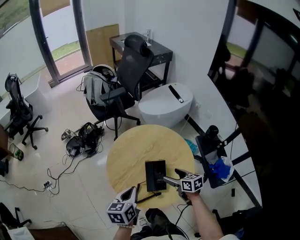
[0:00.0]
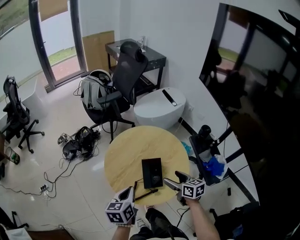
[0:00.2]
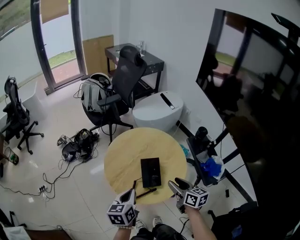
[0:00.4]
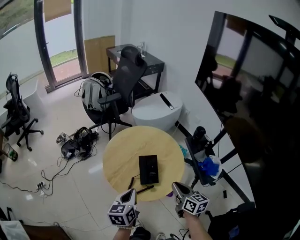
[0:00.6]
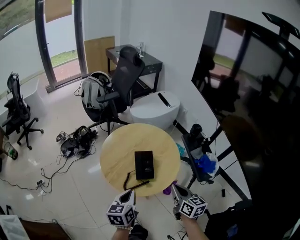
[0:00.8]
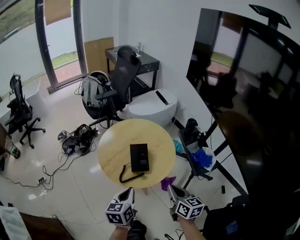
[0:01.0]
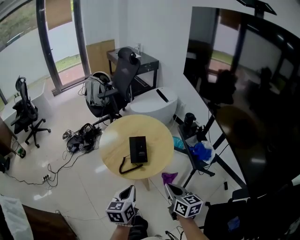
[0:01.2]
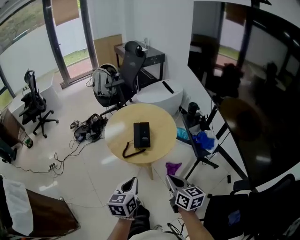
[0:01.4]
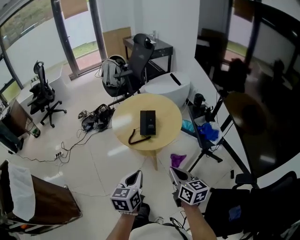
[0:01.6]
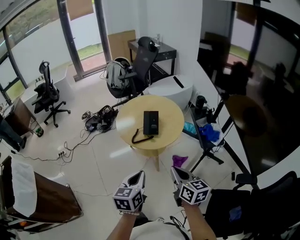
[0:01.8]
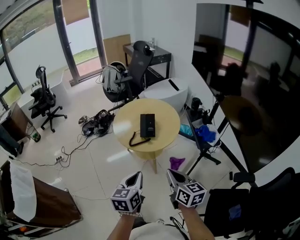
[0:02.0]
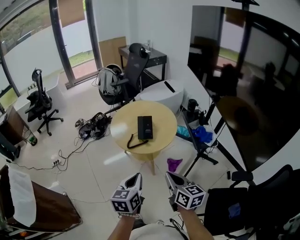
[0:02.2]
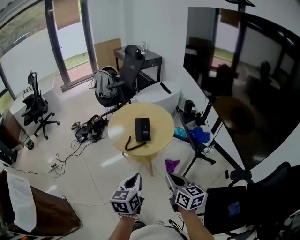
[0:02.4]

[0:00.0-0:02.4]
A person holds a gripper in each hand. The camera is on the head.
0:00.0 to 0:01.2: The right gripper moves backward and upward, roughly 35 cm, changes its angle by approximately 20 degrees, and closes its fingers; the left gripper travels backward by approximately 20 cm.
0:01.2 to 0:02.4: The left gripper travels backward by some 15 cm. Meanwhile the right gripper heads backward and upward, covering about 15 cm.

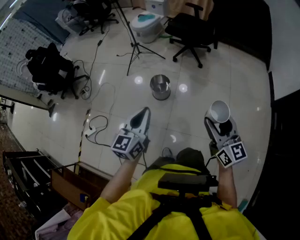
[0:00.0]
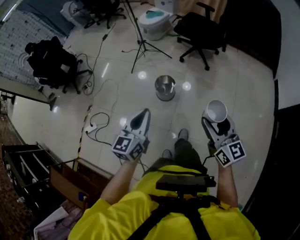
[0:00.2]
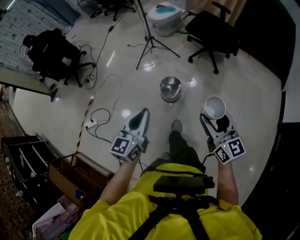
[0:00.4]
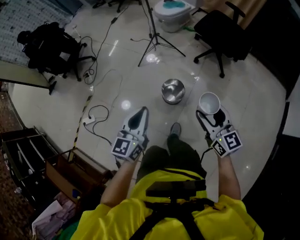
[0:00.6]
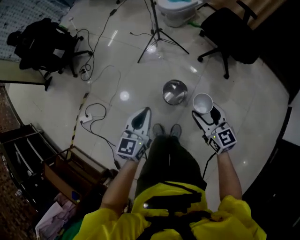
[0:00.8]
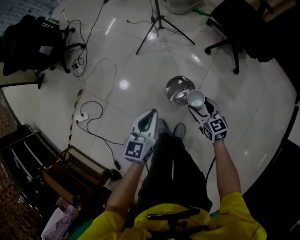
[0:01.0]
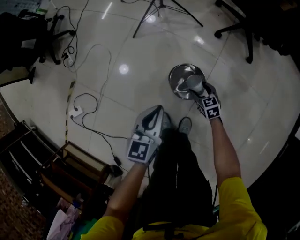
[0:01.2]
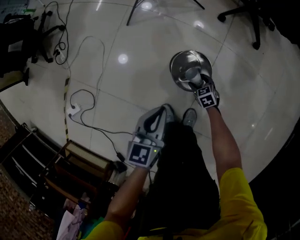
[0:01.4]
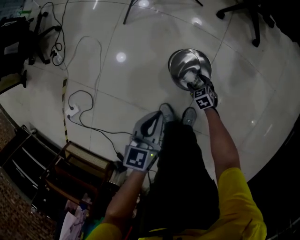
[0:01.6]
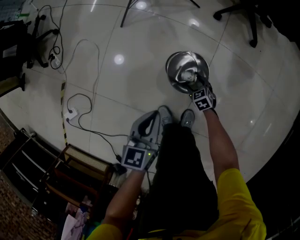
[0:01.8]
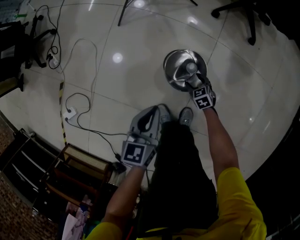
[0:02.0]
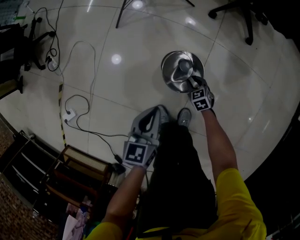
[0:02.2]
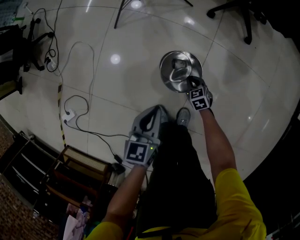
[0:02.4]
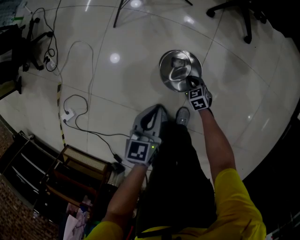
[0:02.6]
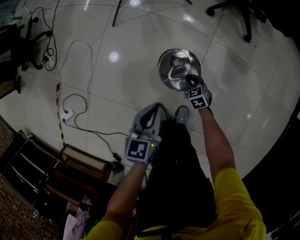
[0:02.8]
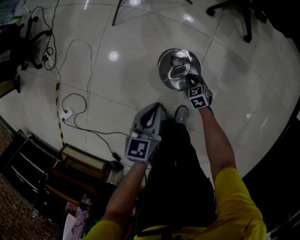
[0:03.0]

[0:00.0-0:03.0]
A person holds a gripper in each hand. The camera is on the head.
0:00.0 to 0:01.6: The right gripper is displaced downward and forward by roughly 1 m, and tilts its fingers some 60 degrees downward. The left gripper goes about 70 cm downward and forward, and changes its angle by roughly 20 degrees.
0:01.6 to 0:03.0: The right gripper closes. The left gripper moves some 5 cm.

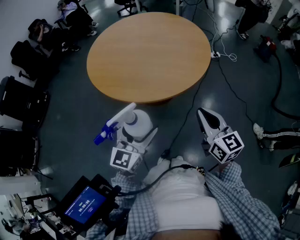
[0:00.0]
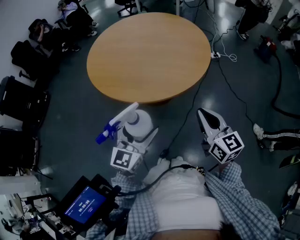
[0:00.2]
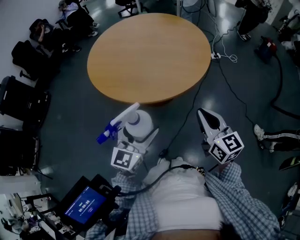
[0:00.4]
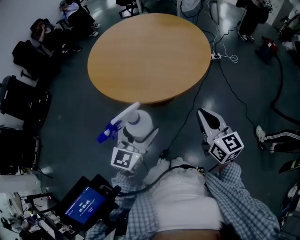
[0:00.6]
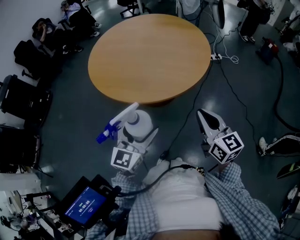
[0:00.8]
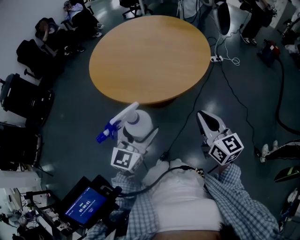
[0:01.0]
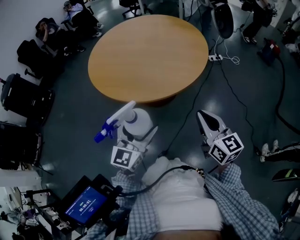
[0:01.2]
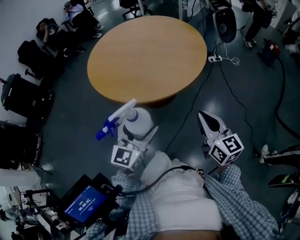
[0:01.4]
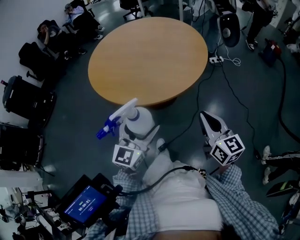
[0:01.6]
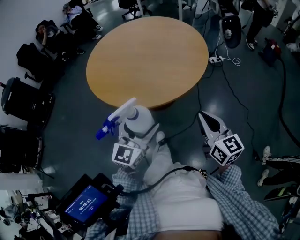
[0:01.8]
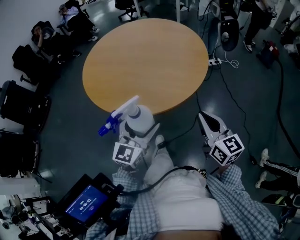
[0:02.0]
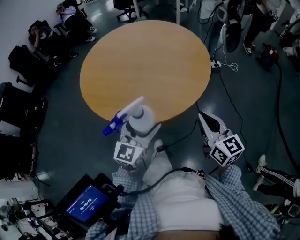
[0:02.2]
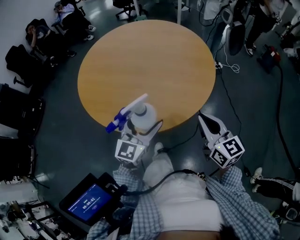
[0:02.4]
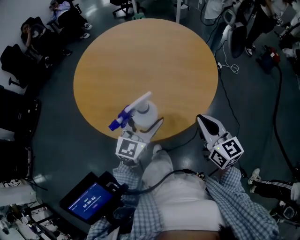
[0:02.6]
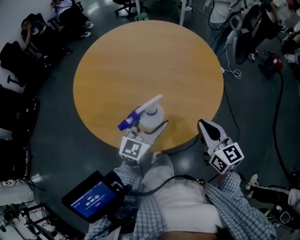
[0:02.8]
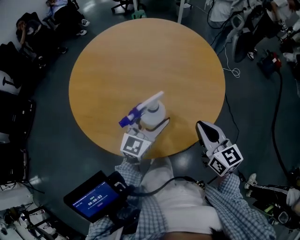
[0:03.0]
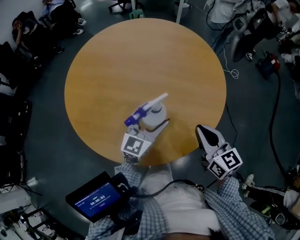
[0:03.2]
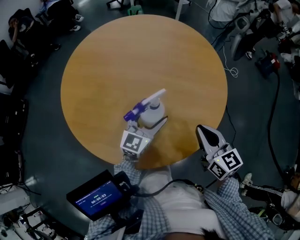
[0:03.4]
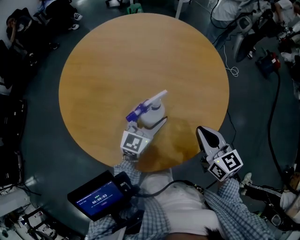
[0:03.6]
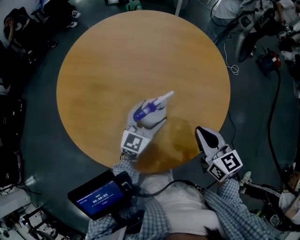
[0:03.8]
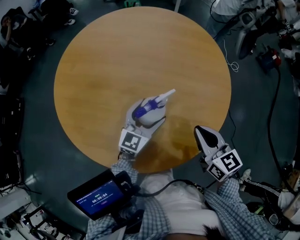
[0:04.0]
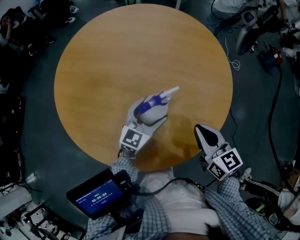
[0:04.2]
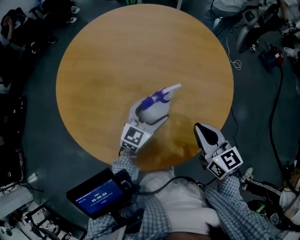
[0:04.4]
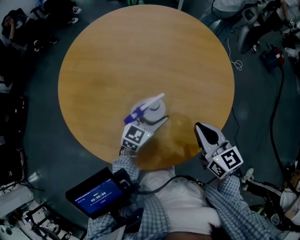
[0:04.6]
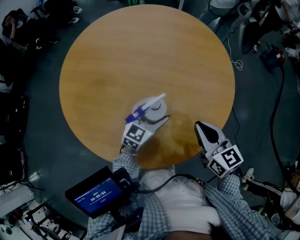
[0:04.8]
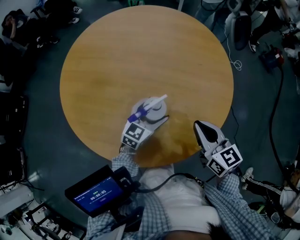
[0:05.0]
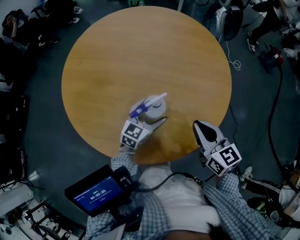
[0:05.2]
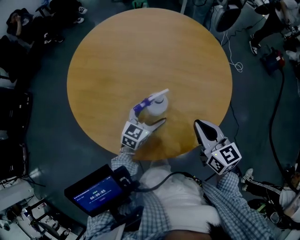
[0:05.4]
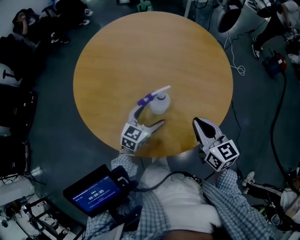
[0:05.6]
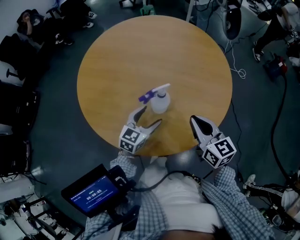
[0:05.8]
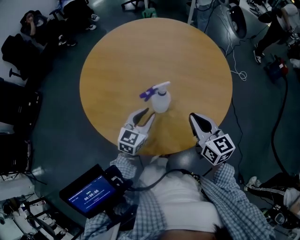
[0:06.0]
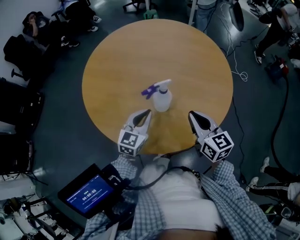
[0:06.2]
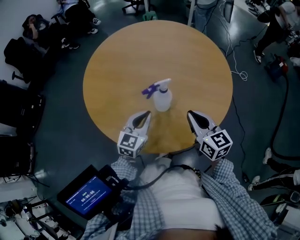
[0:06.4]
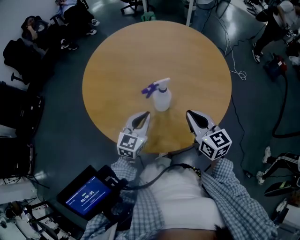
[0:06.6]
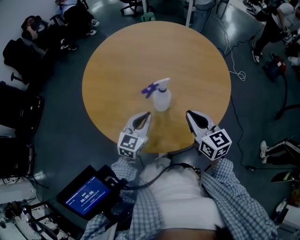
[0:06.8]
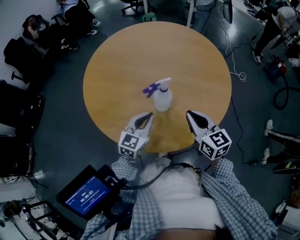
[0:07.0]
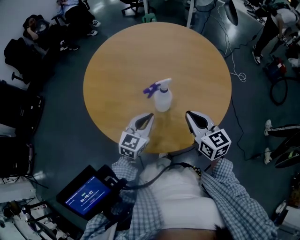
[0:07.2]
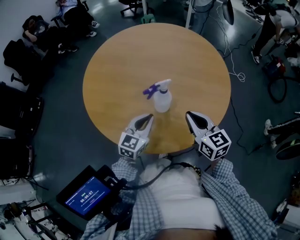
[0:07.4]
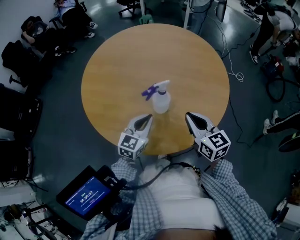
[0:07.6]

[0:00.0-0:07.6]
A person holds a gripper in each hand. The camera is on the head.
0:00.0 to 0:01.6: The right gripper goes some 10 cm backward and to the right. Meanwhile the left gripper shifts by some 10 cm.
0:01.6 to 0:03.0: The two grippers go approximately 30 cm forward.
0:03.0 to 0:04.6: The right gripper goes roughly 5 cm forward. The left gripper is displaced downward and forward by some 15 cm.
0:04.6 to 0:06.0: The right gripper ends up some 5 cm from where it was. The left gripper shifts some 15 cm backward, to the left and upward, and closes up.
0:06.0 to 0:07.6: The grippers make only small movements.

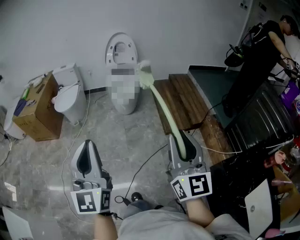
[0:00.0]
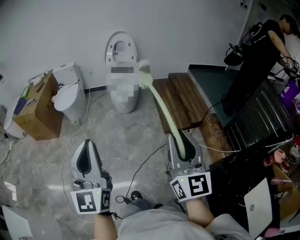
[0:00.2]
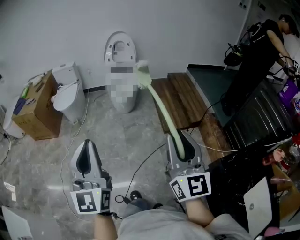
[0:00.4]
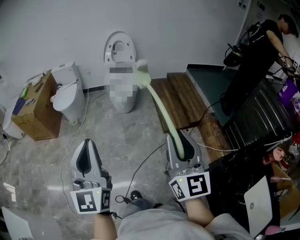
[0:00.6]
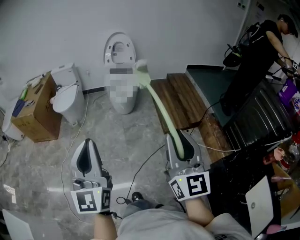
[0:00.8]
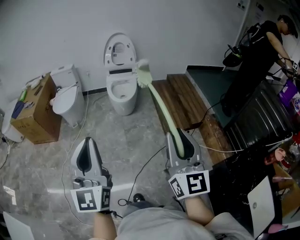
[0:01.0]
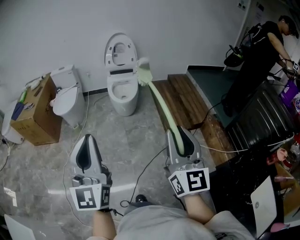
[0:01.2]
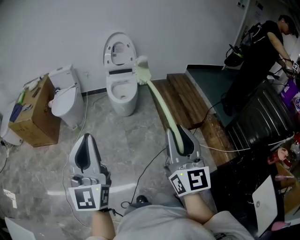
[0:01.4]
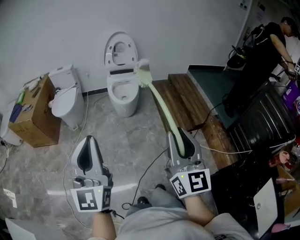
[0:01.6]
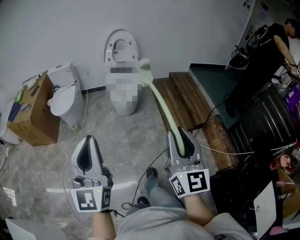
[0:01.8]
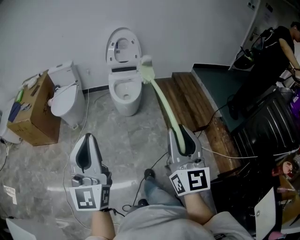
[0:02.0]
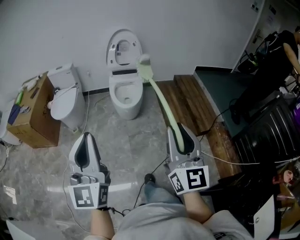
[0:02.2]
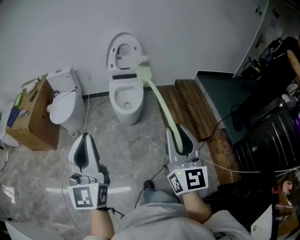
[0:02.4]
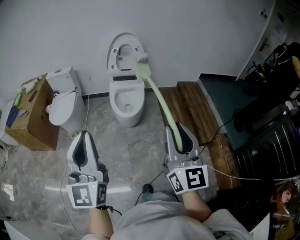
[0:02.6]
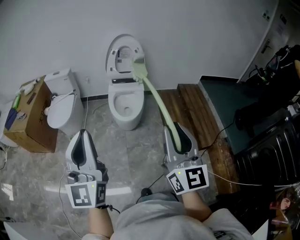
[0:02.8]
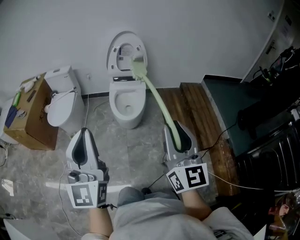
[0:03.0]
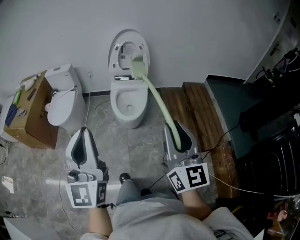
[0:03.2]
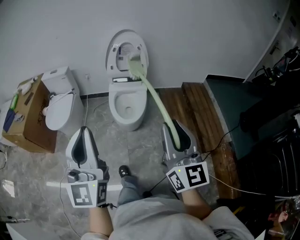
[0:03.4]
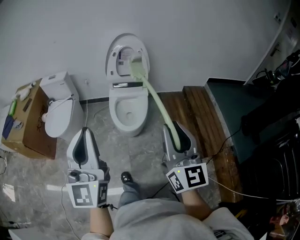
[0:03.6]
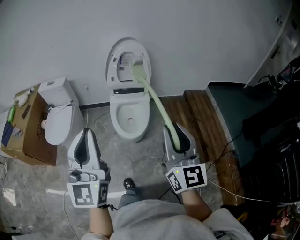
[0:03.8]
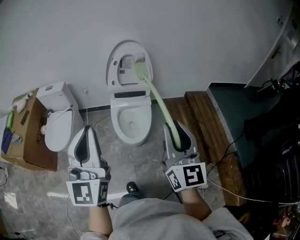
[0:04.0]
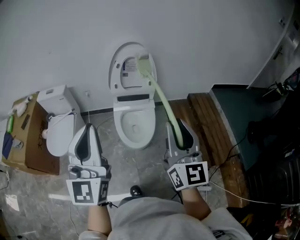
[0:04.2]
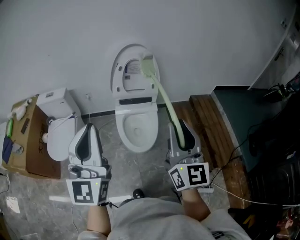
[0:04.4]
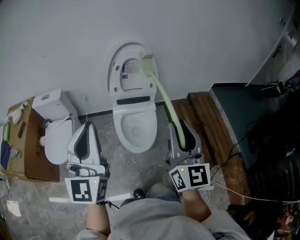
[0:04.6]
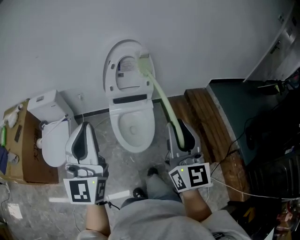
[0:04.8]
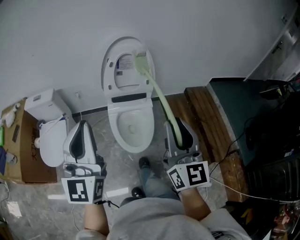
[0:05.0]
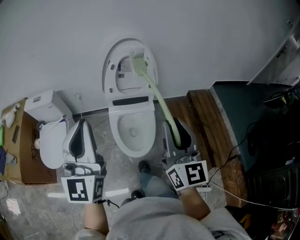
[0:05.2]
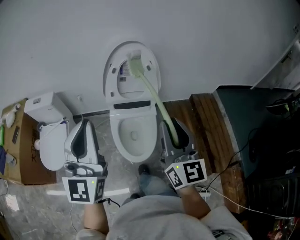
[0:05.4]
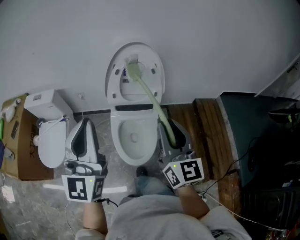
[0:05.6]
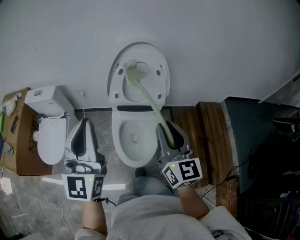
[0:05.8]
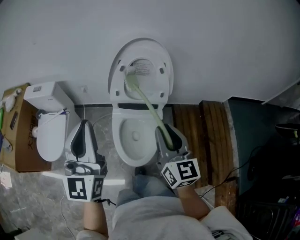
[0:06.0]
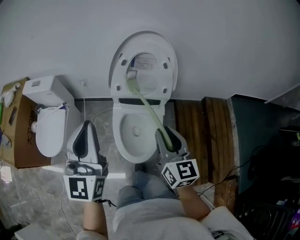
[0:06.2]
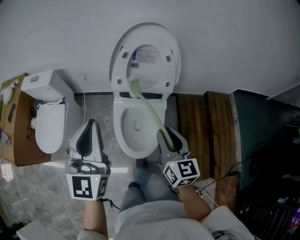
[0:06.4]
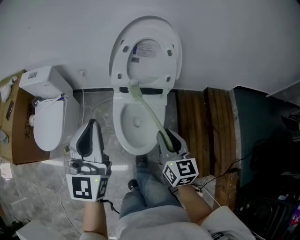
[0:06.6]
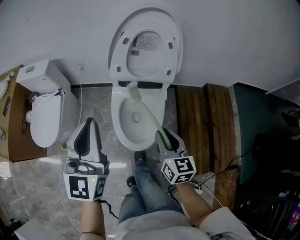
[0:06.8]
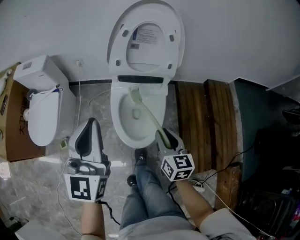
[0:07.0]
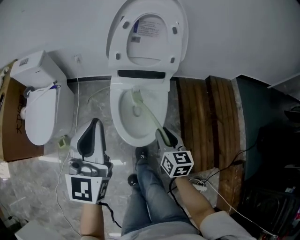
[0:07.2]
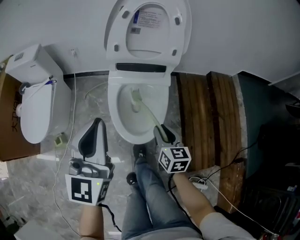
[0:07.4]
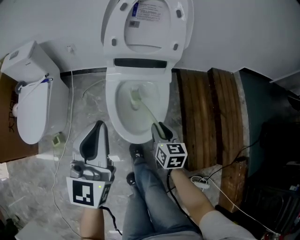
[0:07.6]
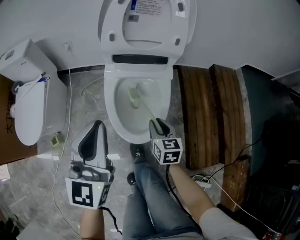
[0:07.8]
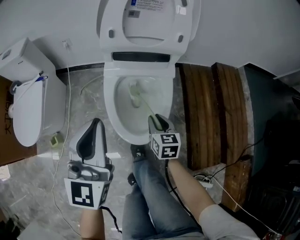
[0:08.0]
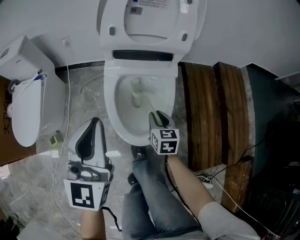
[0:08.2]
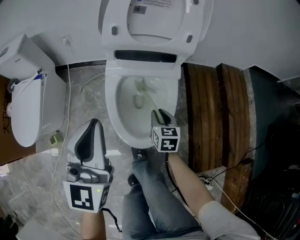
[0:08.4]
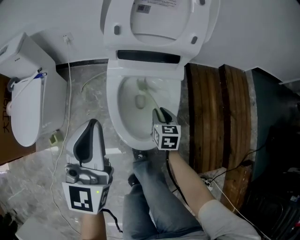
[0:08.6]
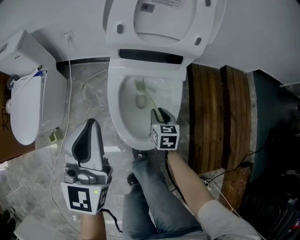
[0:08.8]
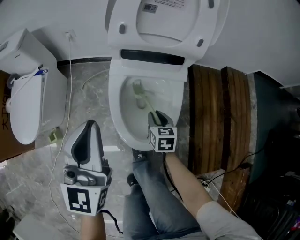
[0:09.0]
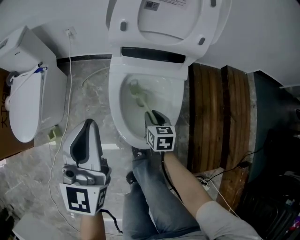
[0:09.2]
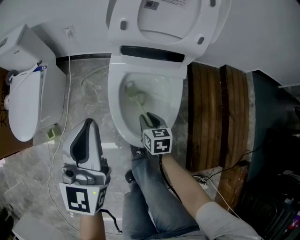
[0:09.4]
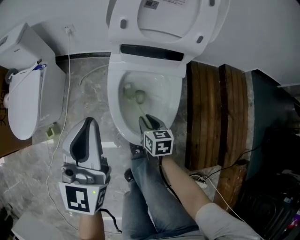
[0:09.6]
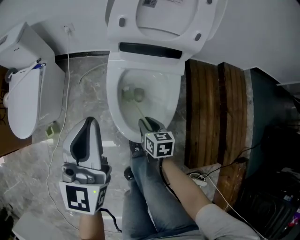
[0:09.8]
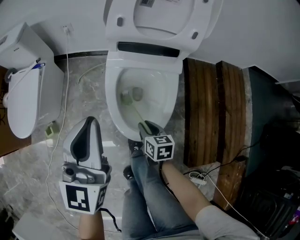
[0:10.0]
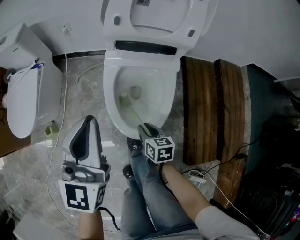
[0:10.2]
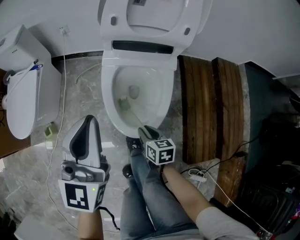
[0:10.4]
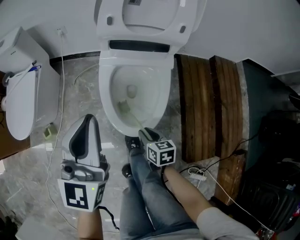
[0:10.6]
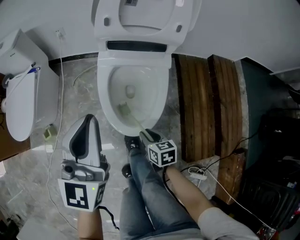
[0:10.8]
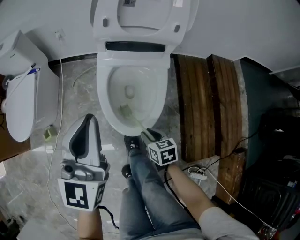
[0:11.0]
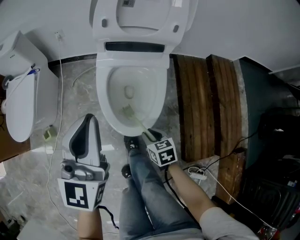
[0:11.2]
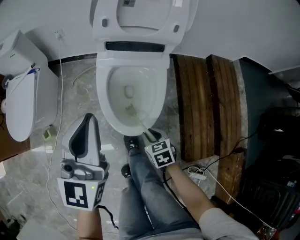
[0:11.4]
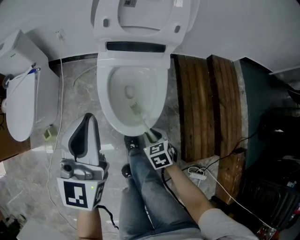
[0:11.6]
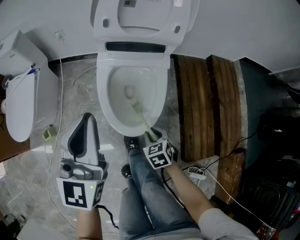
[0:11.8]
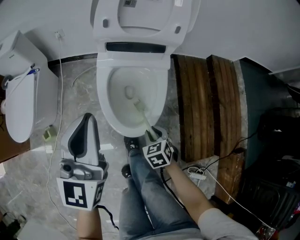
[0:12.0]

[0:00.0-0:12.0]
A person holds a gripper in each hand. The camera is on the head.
0:00.0 to 0:01.6: The two grippers go about 10 cm forward and to the left.
0:01.6 to 0:03.0: Both grippers move forward, some 30 cm.
0:03.0 to 0:04.4: The two grippers go approximately 35 cm forward.
0:04.4 to 0:06.0: The left gripper shifts approximately 25 cm forward; the right gripper is displaced forward and downward by about 30 cm, and rotates approximately 20 degrees.
0:06.0 to 0:07.6: The left gripper shifts approximately 25 cm downward; the right gripper shifts about 40 cm downward, and changes its angle by approximately 30 degrees.
0:07.6 to 0:09.0: The right gripper travels downward and forward by approximately 15 cm, while the left gripper shifts approximately 10 cm downward and forward.
0:09.0 to 0:10.4: The right gripper shifts about 15 cm backward.
0:10.4 to 0:12.0: The right gripper swivels some 40 degrees.
